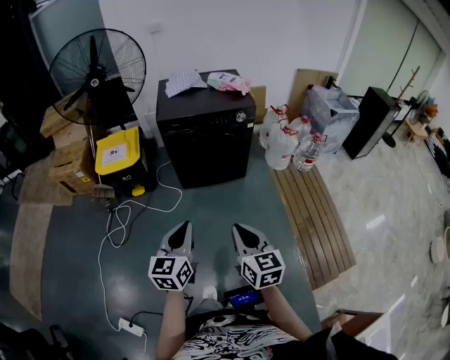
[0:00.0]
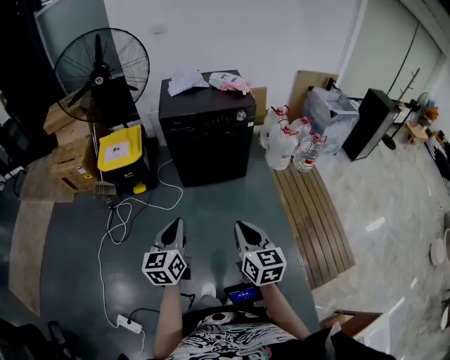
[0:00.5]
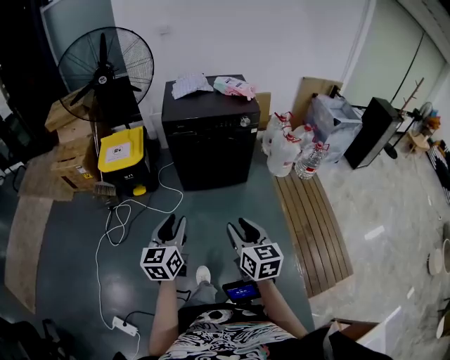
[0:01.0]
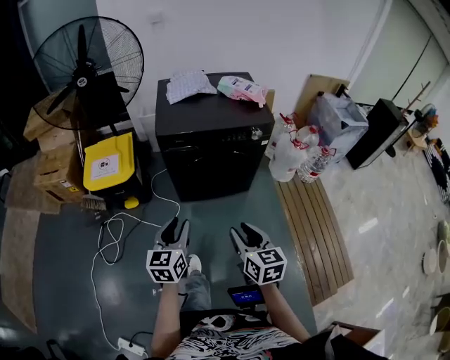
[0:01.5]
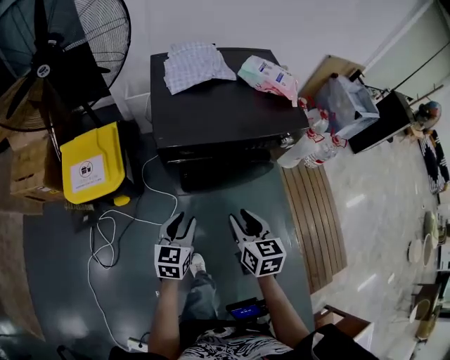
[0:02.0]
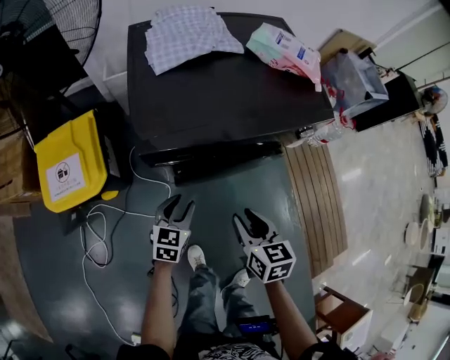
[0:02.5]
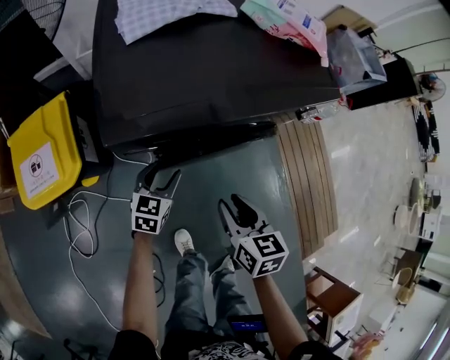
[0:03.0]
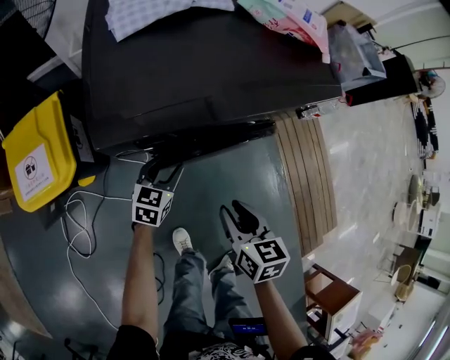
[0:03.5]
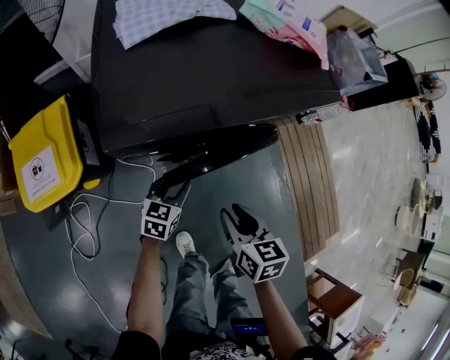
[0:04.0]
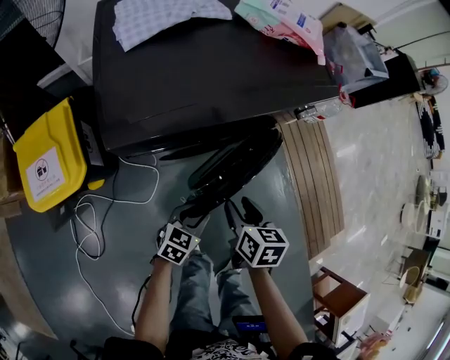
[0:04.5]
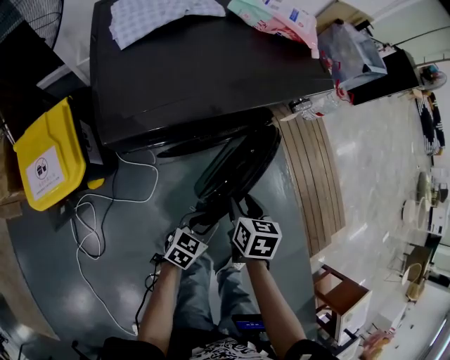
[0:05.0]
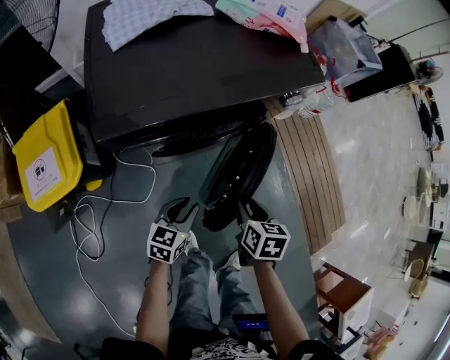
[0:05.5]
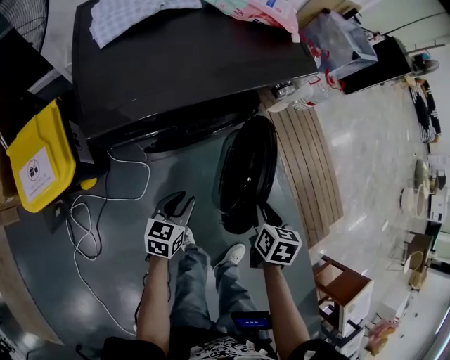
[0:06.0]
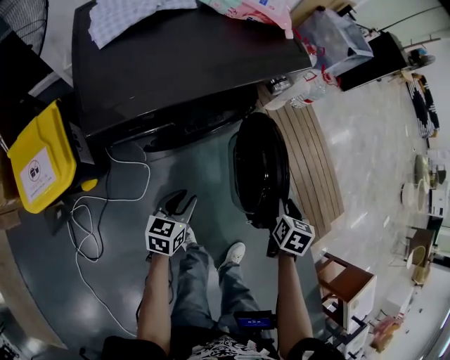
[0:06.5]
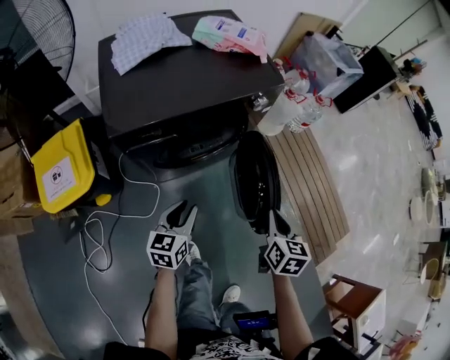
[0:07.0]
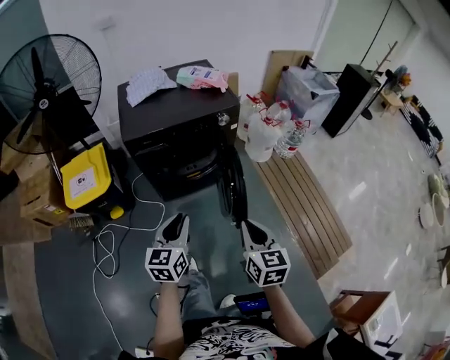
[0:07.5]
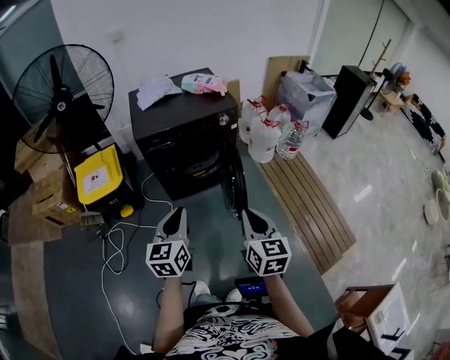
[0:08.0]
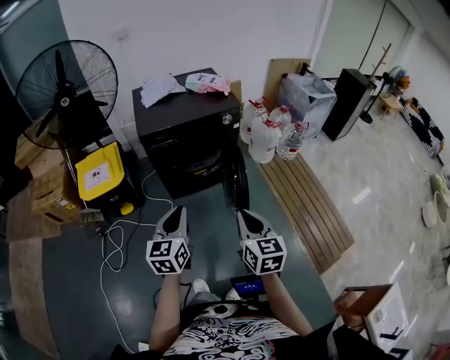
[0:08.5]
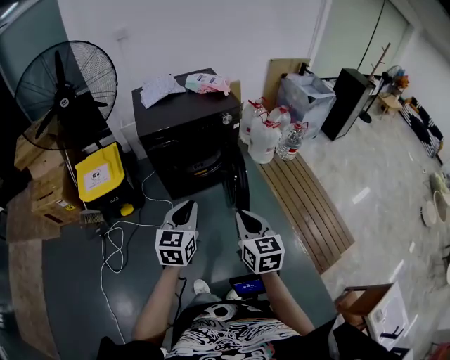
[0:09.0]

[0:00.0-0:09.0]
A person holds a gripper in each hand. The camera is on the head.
0.0 to 2.0 s: Both grippers are carried forward, approximately 40 cm. The left gripper is displaced downward by some 20 cm, and opens its fingers. Meanwhile the right gripper opens up.
2.0 to 4.5 s: The left gripper shifts some 20 cm downward and to the right, and turns by about 30 degrees; the right gripper moves downward and forward, about 15 cm, and turns by about 30 degrees.
4.5 to 7.0 s: The left gripper is displaced upward by roughly 15 cm, and swivels some 20 degrees; the right gripper travels to the right and upward by about 20 cm, and closes up.
7.0 to 9.0 s: The left gripper moves upward and backward, about 35 cm, and closes, while the right gripper heads backward and upward, covering roughly 30 cm, and rotates some 30 degrees.

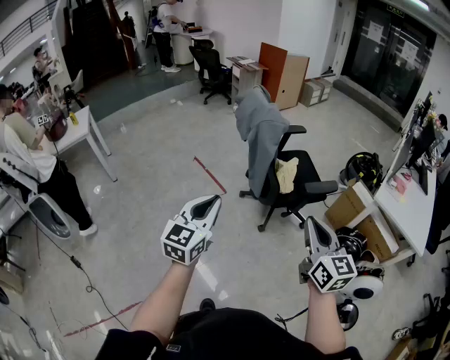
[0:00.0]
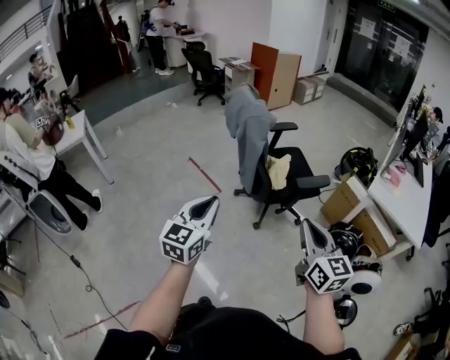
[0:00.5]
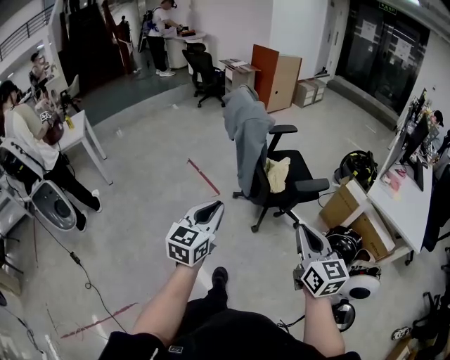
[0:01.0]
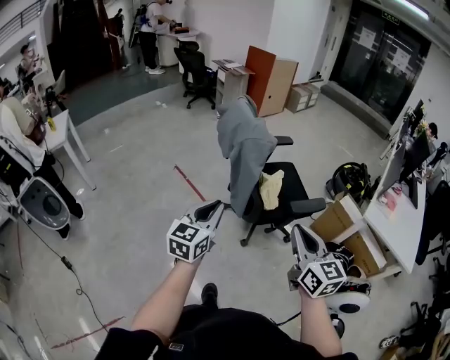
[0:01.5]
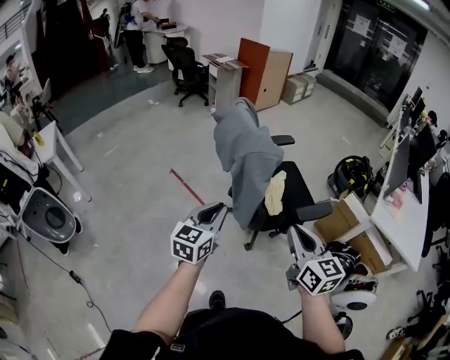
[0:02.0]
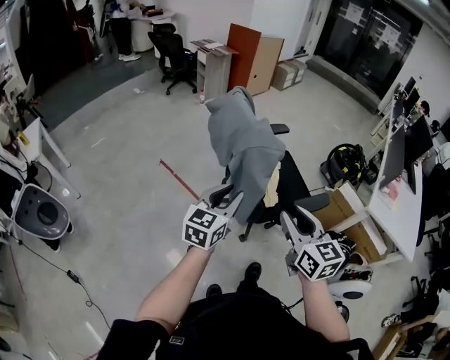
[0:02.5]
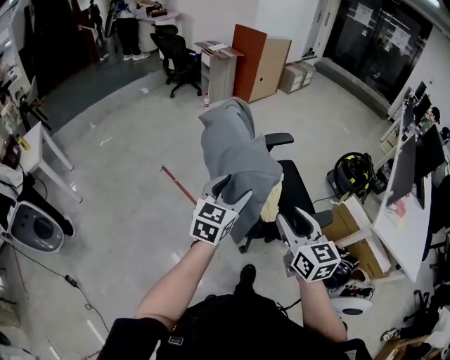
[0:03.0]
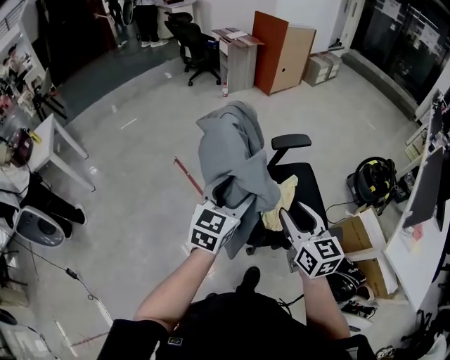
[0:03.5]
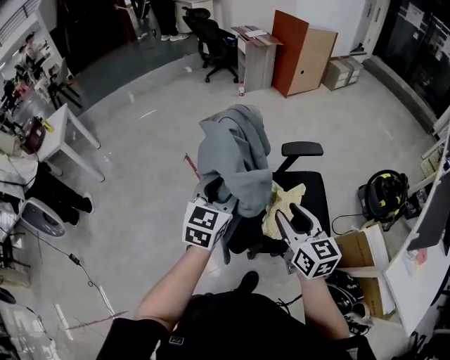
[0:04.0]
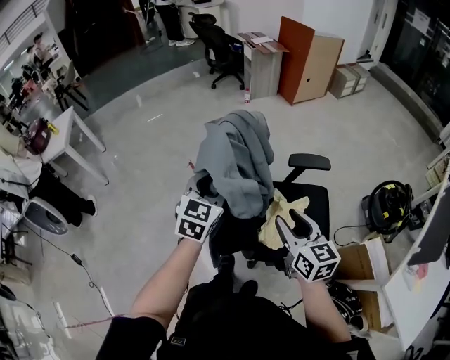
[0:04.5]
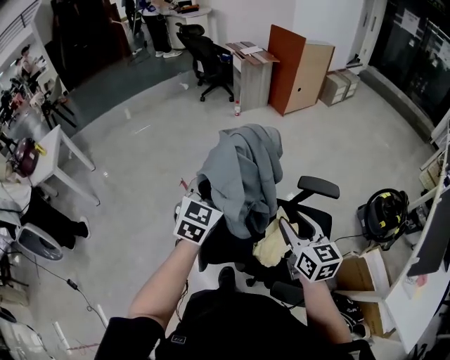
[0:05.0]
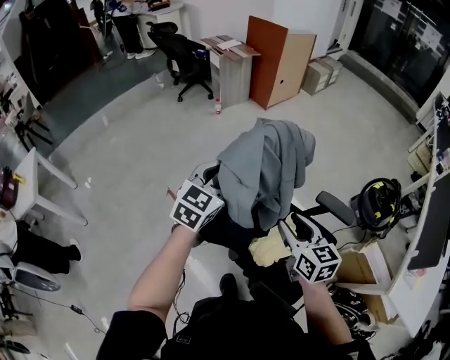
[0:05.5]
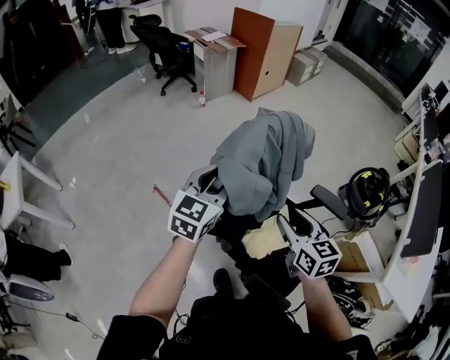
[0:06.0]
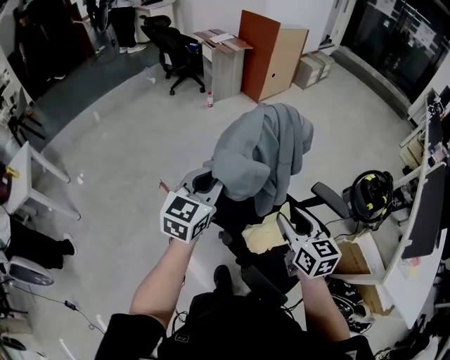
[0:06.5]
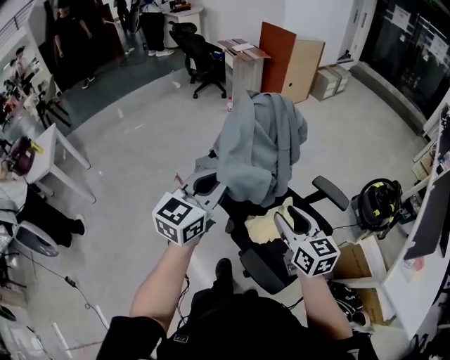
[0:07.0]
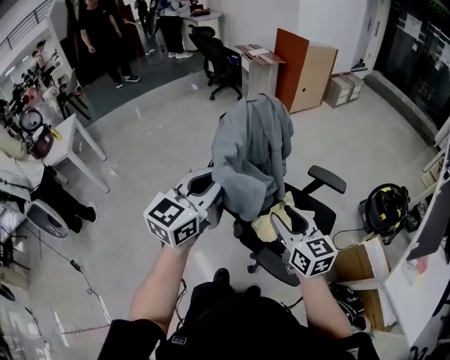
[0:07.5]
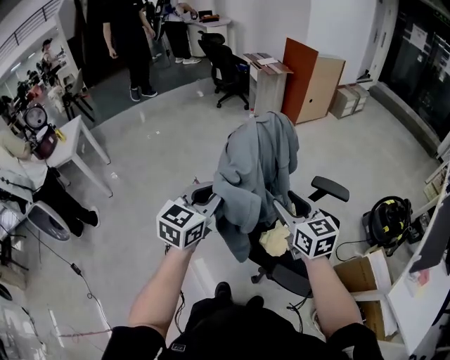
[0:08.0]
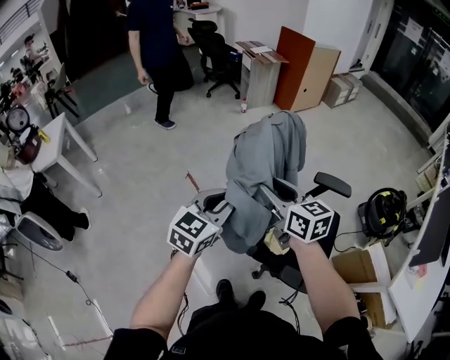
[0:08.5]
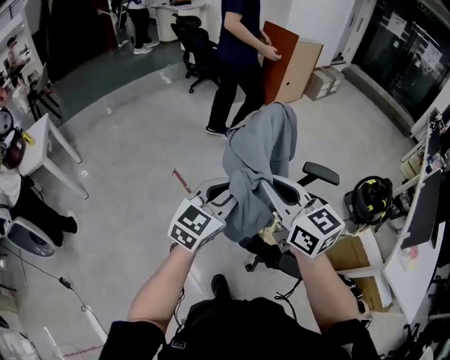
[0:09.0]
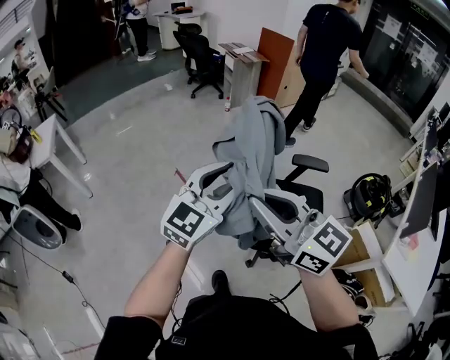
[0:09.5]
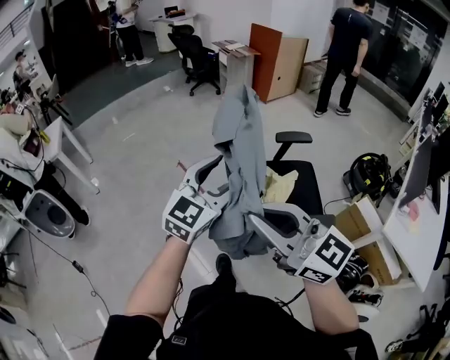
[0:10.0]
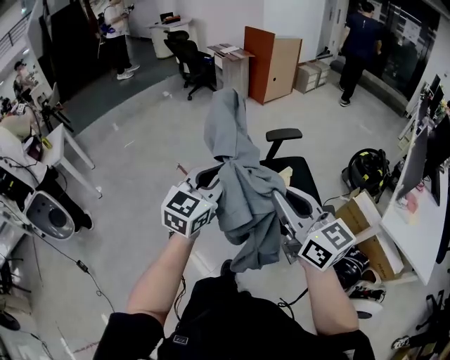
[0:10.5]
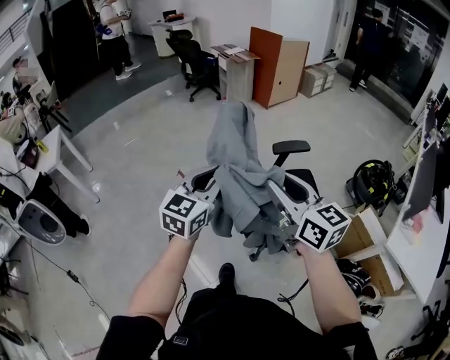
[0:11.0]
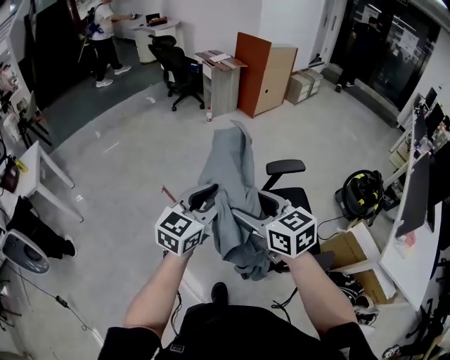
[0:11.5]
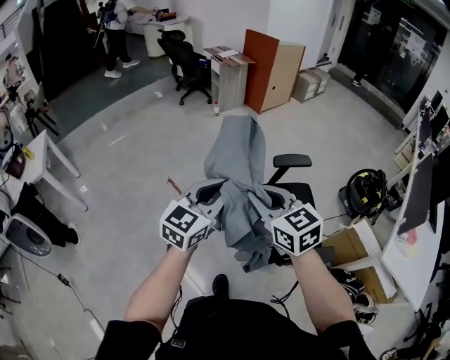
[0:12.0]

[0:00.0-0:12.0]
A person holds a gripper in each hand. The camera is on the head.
0.0 to 2.0 s: Both grippers move forward, roughly 25 cm.
2.0 to 4.0 s: The two grippers go about 35 cm forward. The left gripper opens its fingers. The right gripper opens.
4.0 to 6.0 s: The two grippers go some 25 cm forward.
6.0 to 8.0 s: The left gripper shifts some 25 cm backward, and closes. The right gripper travels backward by approximately 15 cm, and rotates roughly 20 degrees.
8.0 to 10.0 s: The right gripper heads backward and upward, covering about 35 cm, changes its angle by some 30 degrees, and closes, while the left gripper travels backward by some 20 cm, swivels approximately 20 degrees, and opens.
10.0 to 12.0 s: The left gripper goes approximately 15 cm forward, and closes up, while the right gripper shifts approximately 30 cm forward, turns by roughly 30 degrees, and opens and closes again.

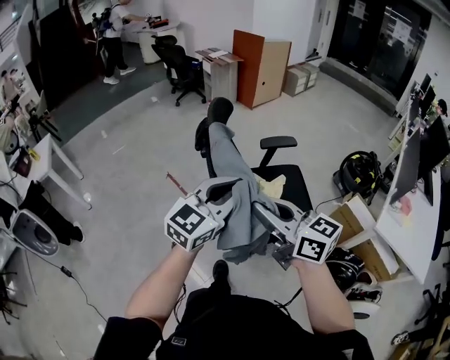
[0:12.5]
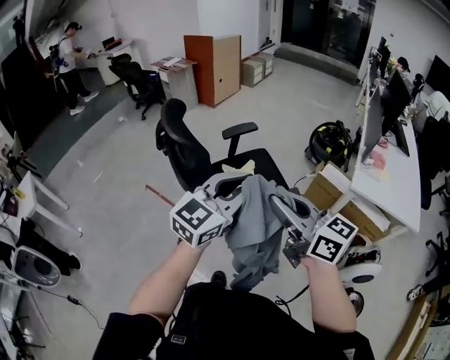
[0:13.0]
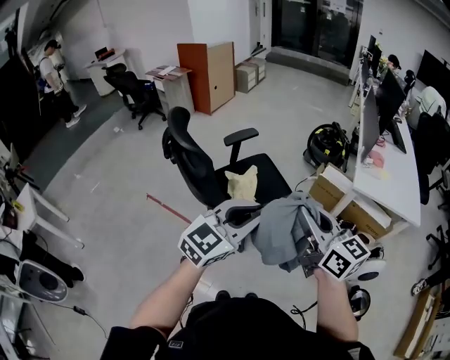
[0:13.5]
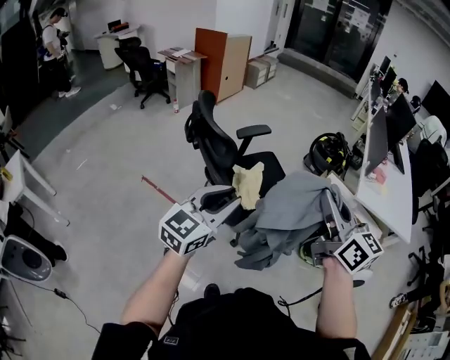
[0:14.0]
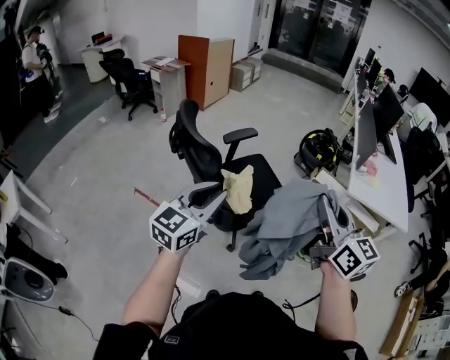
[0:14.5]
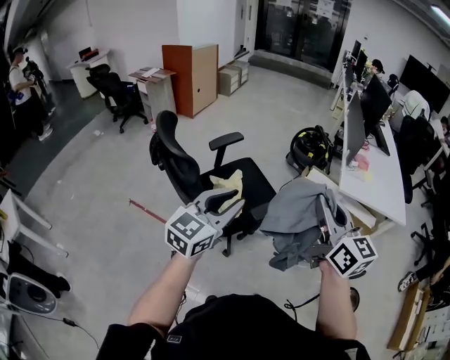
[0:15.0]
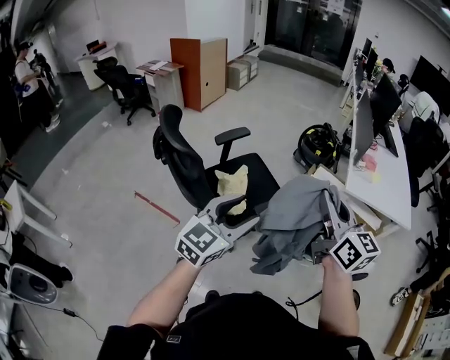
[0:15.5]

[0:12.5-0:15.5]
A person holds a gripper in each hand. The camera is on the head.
12.5 to 14.0 s: The right gripper ends up approximately 15 cm from where it was, and changes its angle by some 40 degrees.
14.0 to 15.5 s: The left gripper shifts roughly 15 cm to the right, and opens up. Meanwhile the right gripper heads to the right and forward, covering some 15 cm.

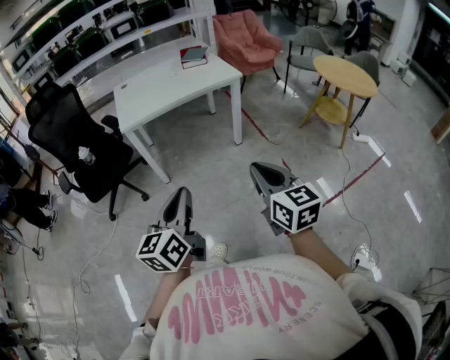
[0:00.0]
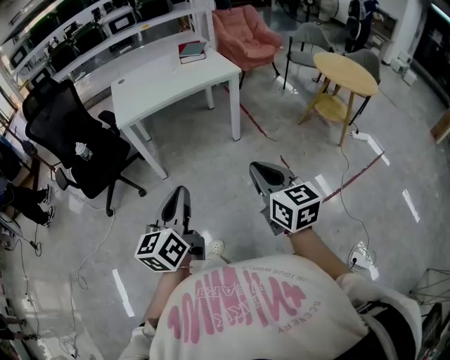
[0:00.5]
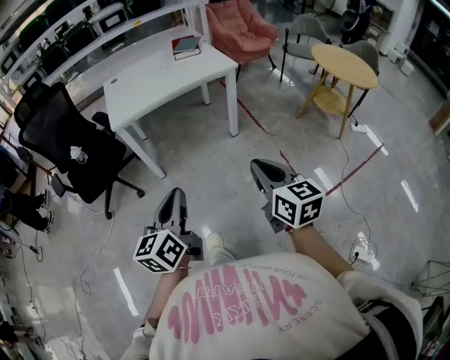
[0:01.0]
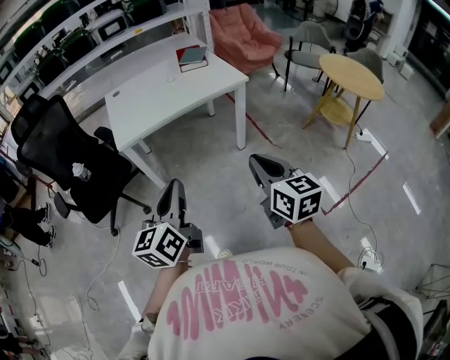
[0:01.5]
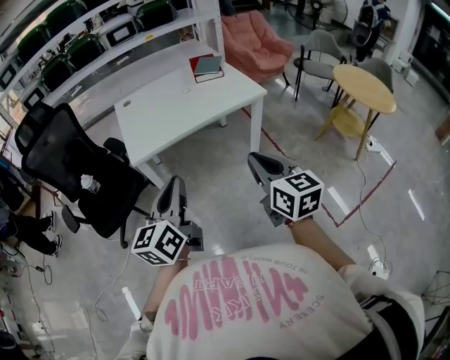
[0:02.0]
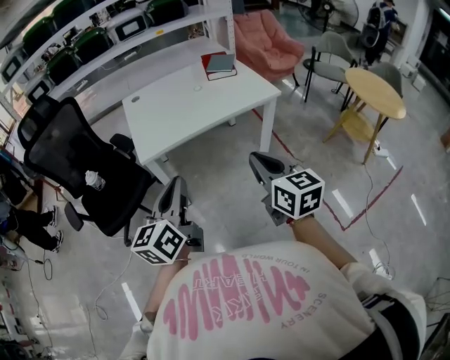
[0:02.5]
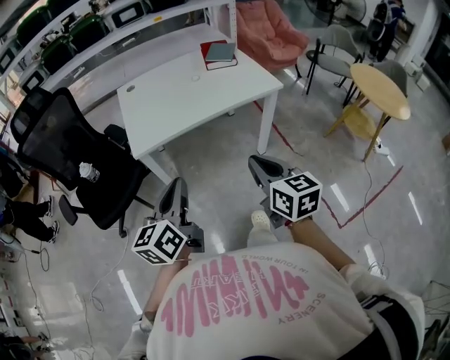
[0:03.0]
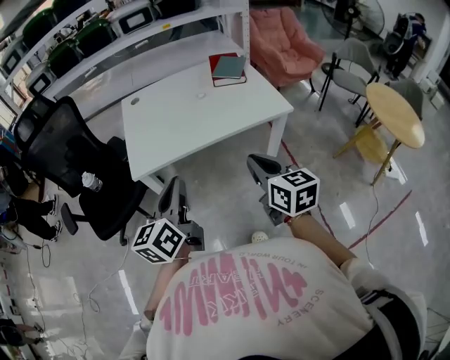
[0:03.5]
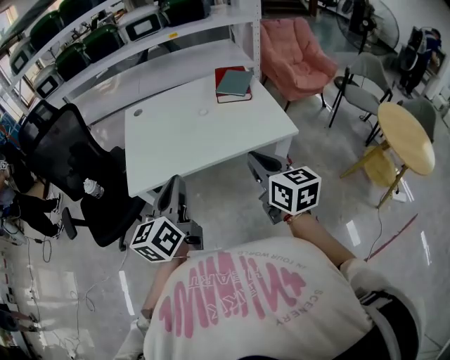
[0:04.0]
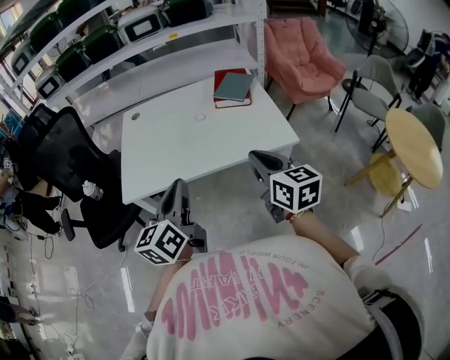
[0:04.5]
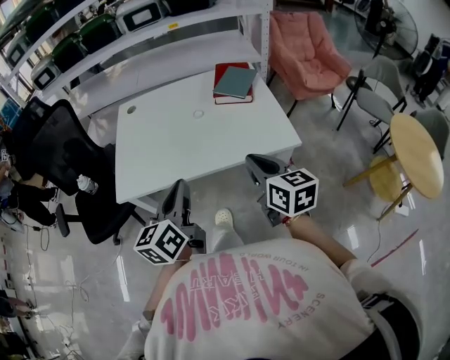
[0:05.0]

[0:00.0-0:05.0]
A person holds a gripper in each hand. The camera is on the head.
0.0 to 2.5 s: Both grippers travel together forward and to the left, about 40 cm.
2.5 to 5.0 s: The pair of grippers is taken forward and to the right, about 40 cm.
